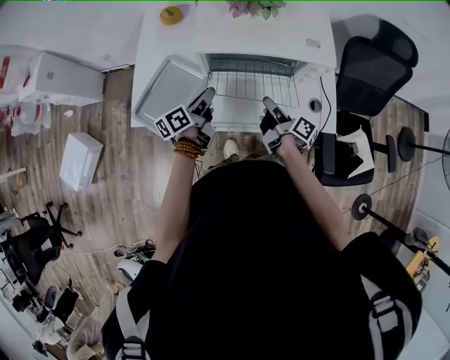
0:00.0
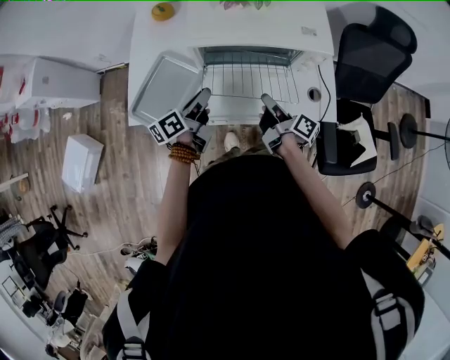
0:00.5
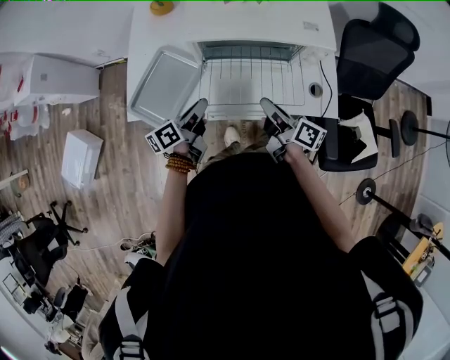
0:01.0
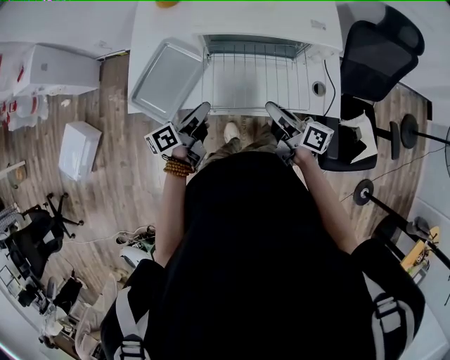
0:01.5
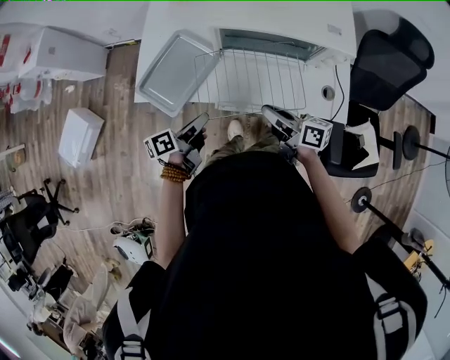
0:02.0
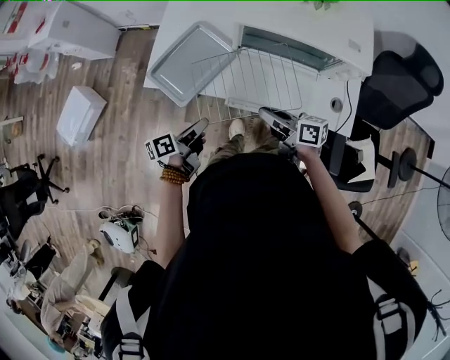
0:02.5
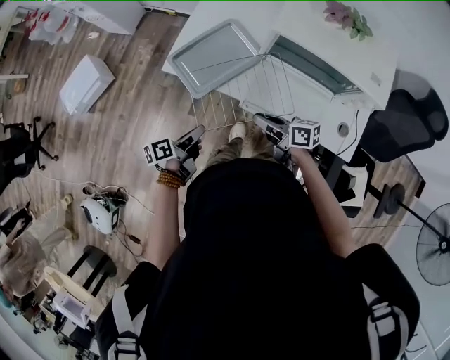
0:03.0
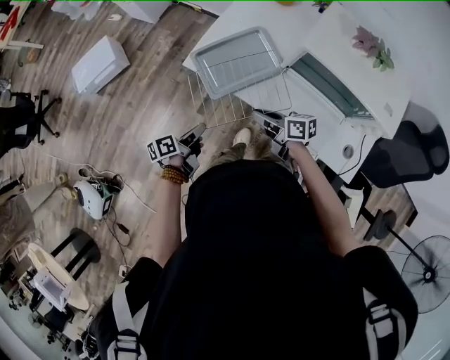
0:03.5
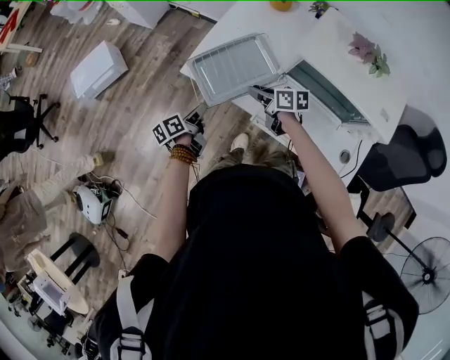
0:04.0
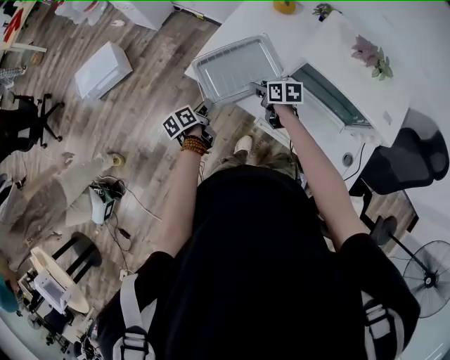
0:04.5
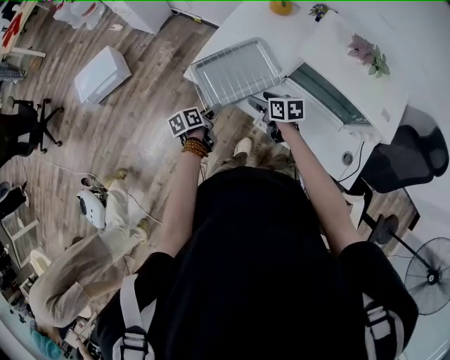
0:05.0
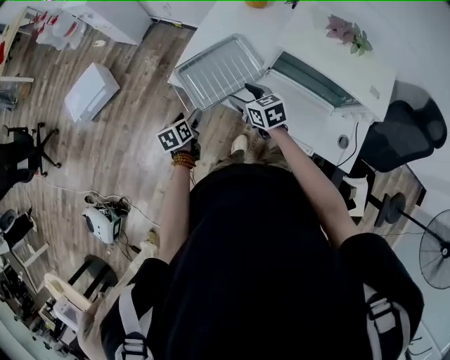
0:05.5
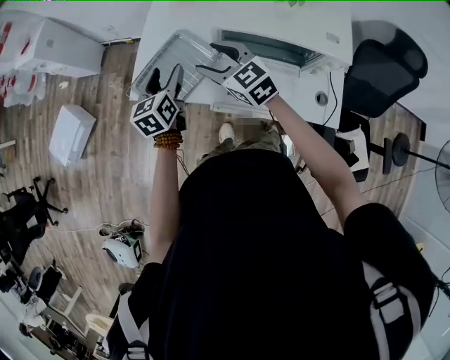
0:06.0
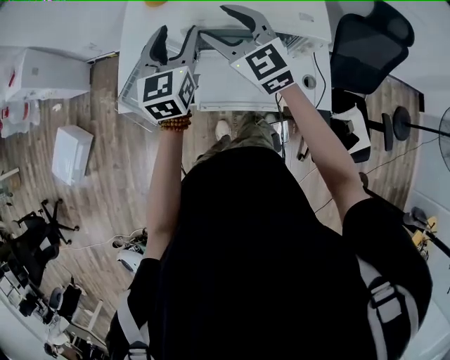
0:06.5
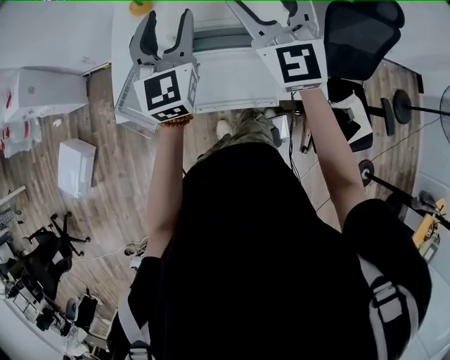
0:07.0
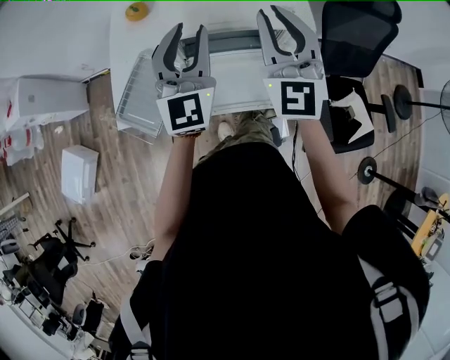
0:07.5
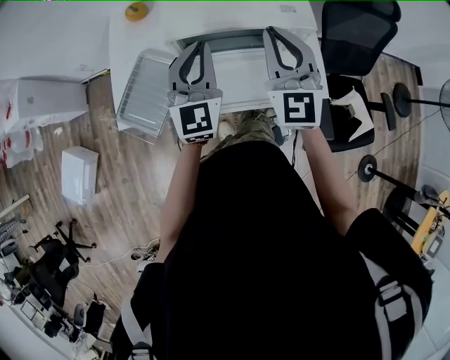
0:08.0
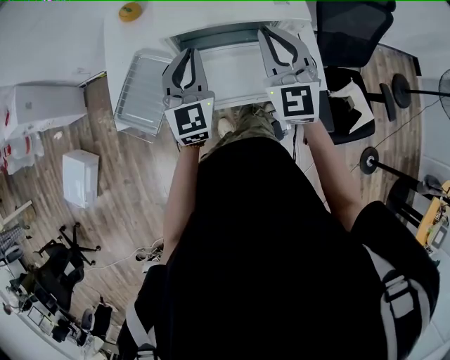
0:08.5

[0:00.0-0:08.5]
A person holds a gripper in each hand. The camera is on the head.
0:00.0 to 0:02.0: The right gripper is displaced backward and to the left by some 10 cm, and turns by about 40 degrees, while the left gripper heads backward, covering approximately 15 cm.
0:02.0 to 0:04.0: The right gripper shifts by roughly 25 cm, and changes its angle by approximately 40 degrees. The left gripper changes place by some 20 cm, and swivels about 40 degrees.
0:04.0 to 0:06.5: The grippers both shift upward by approximately 30 cm. The left gripper rolls clockwise, seen from behind, by approximately 70 degrees, and opens its fingers. The right gripper changes its angle by some 70 degrees, and opens.
0:06.5 to 0:08.5: The left gripper heads to the right and backward, covering roughly 10 cm, moves about 5 cm upward and comes back, and closes its fingers, while the right gripper travels to the right and backward by roughly 15 cm, rotates roughly 30 degrees, and closes its fingers.

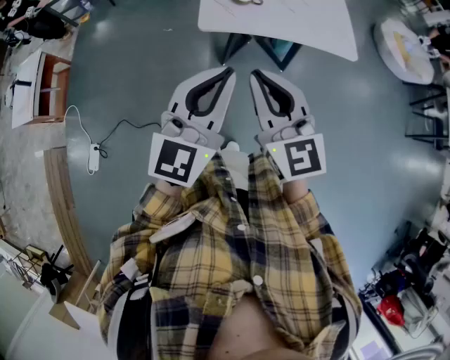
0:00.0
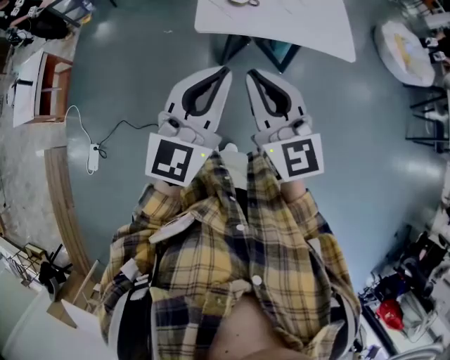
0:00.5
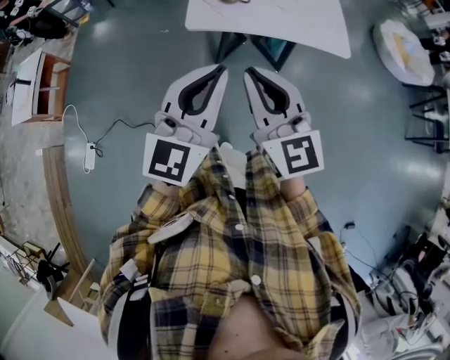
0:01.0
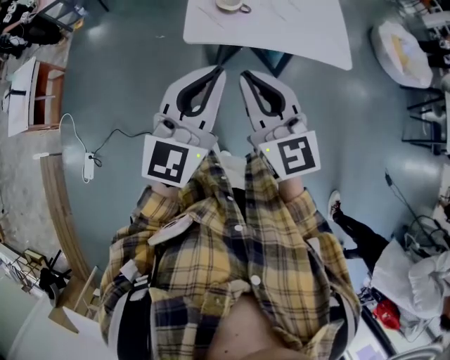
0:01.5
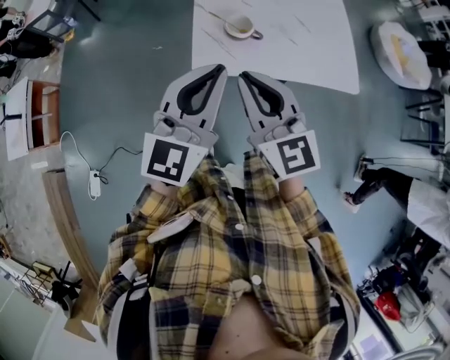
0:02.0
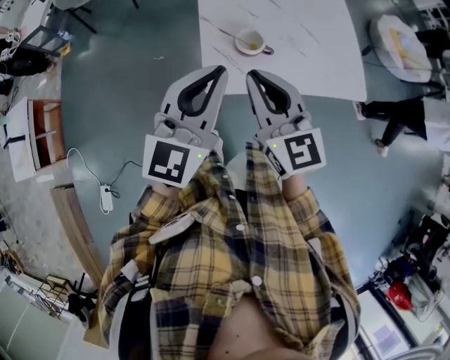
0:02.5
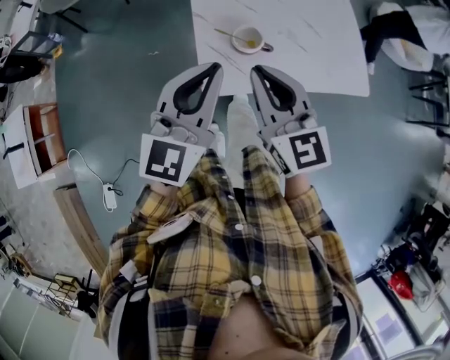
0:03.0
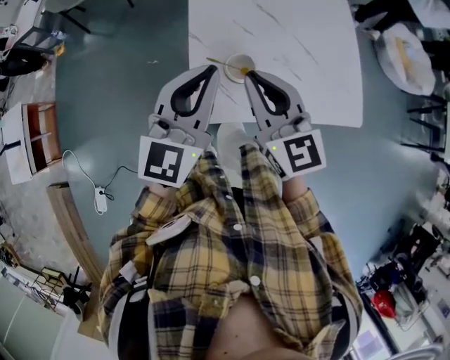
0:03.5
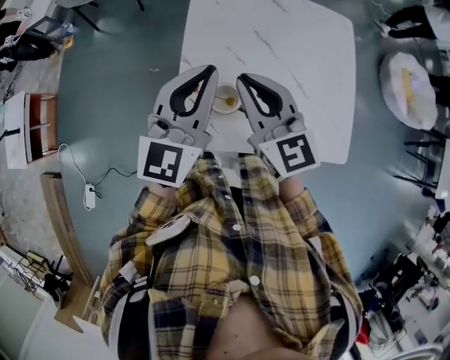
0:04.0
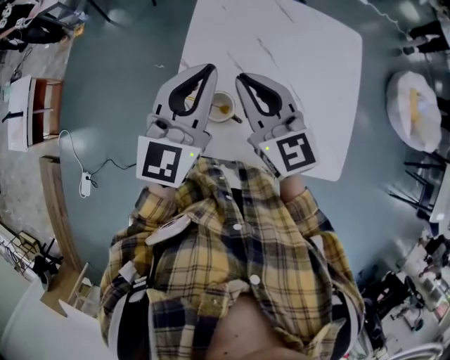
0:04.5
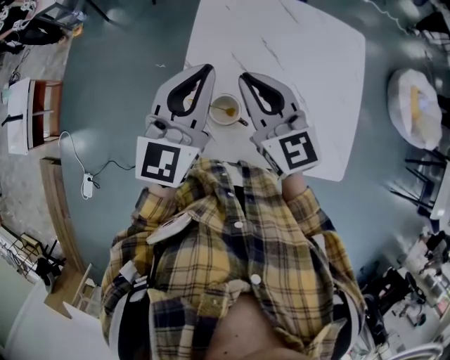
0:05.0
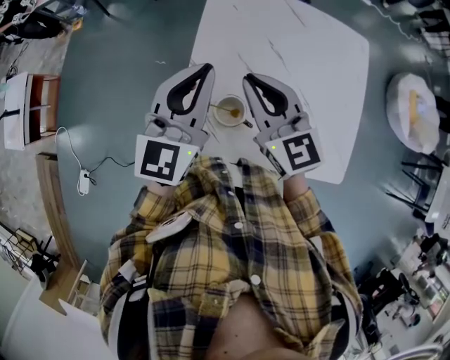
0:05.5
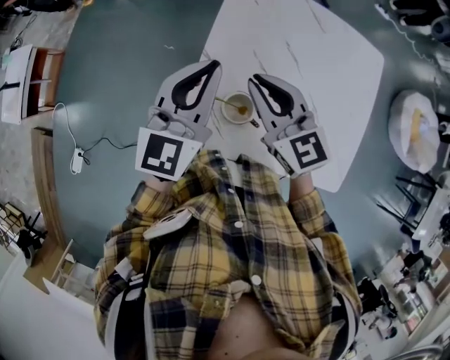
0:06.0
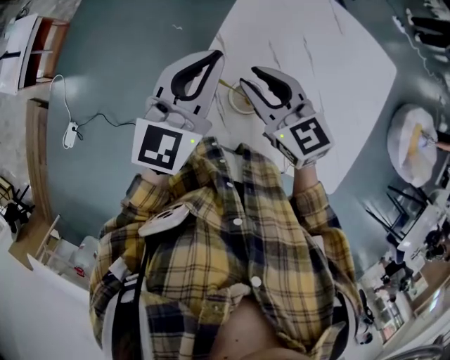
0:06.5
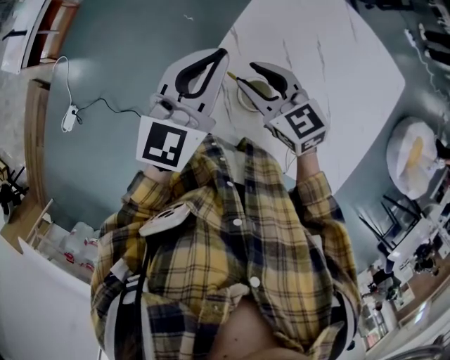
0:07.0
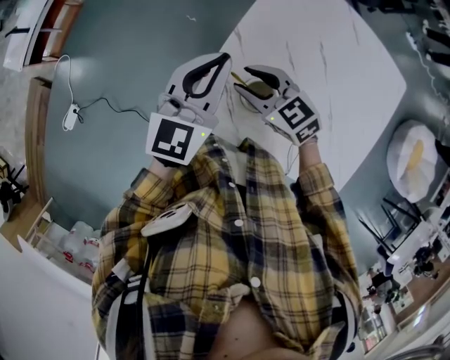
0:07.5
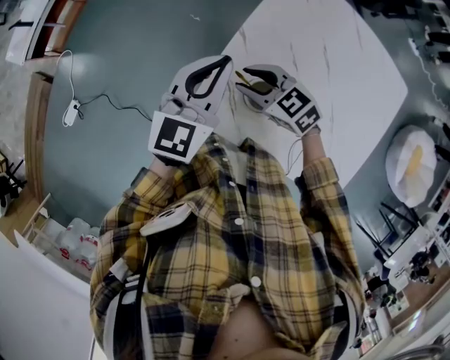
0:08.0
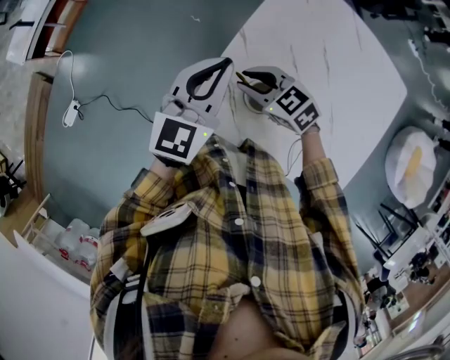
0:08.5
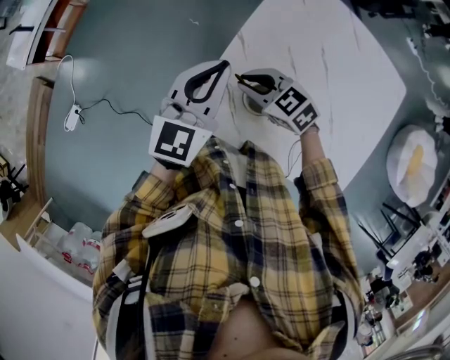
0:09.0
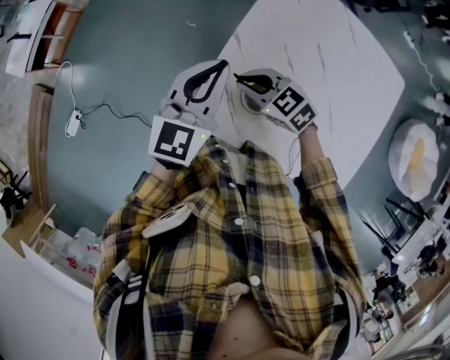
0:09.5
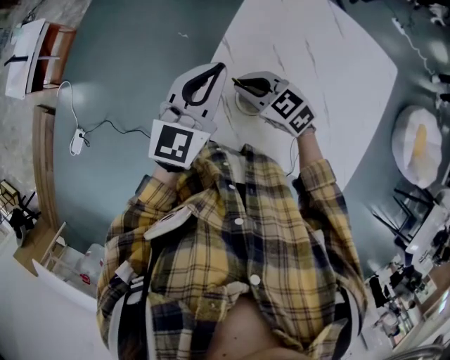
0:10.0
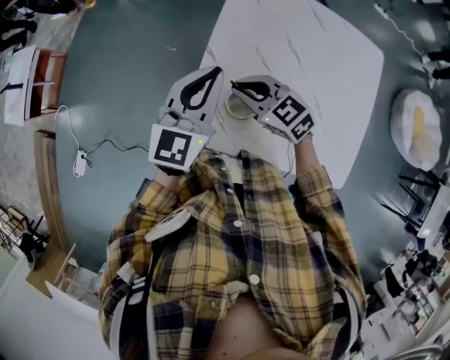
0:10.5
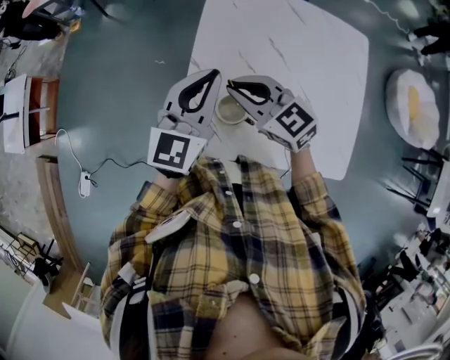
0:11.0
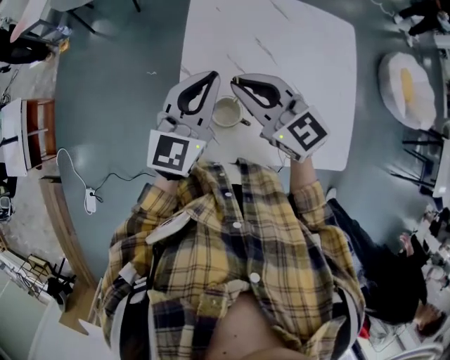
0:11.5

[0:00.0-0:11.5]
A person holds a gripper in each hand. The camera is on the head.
0:00.0 to 0:02.0: The two grippers go roughly 20 cm forward.
0:02.0 to 0:04.0: The two grippers go about 25 cm forward.
0:04.0 to 0:06.0: The two grippers go approximately 5 cm forward.
0:06.0 to 0:07.5: The left gripper shifts about 10 cm downward and to the left. The right gripper moves downward and to the left, roughly 15 cm, changes its angle by roughly 40 degrees, and opens.
0:07.5 to 0:09.5: The right gripper closes its fingers.
0:09.5 to 0:11.5: The right gripper moves upward, roughly 20 cm, and turns by roughly 40 degrees. The left gripper shifts by approximately 10 cm, and swivels some 20 degrees.

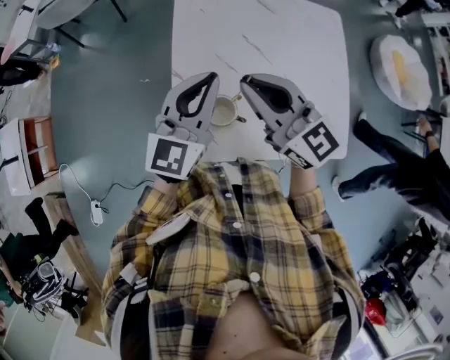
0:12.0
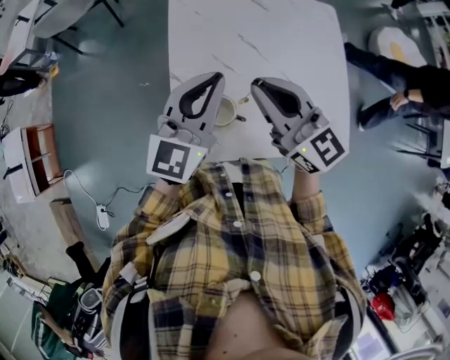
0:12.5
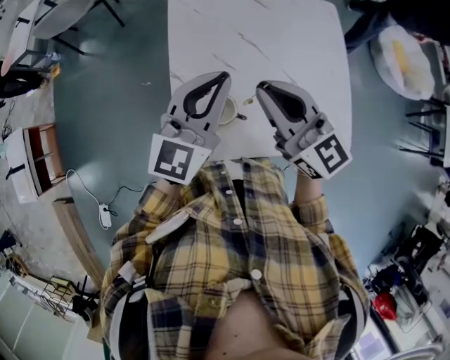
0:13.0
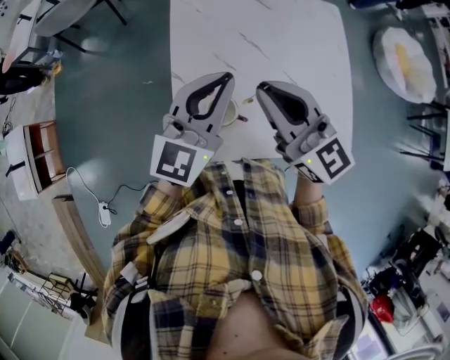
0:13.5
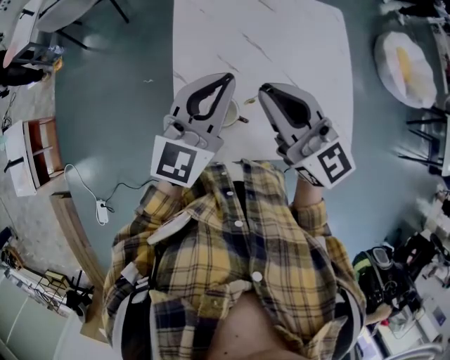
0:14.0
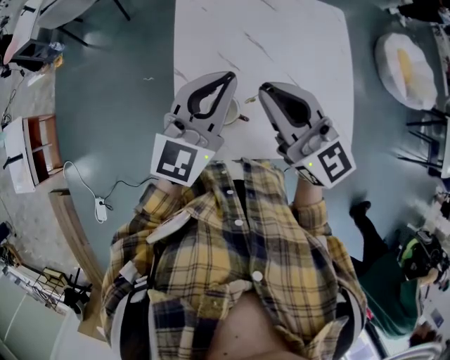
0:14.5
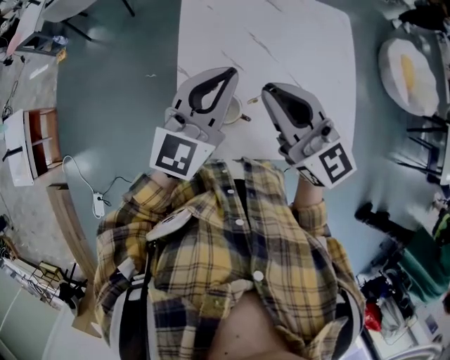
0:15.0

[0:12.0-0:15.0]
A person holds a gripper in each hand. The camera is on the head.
0:12.0 to 0:13.5: The grippers move only a little.
0:13.5 to 0:15.0: Neither gripper changes place.

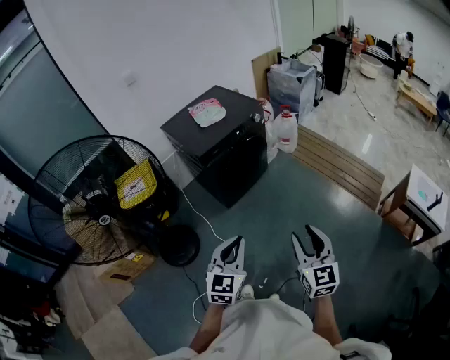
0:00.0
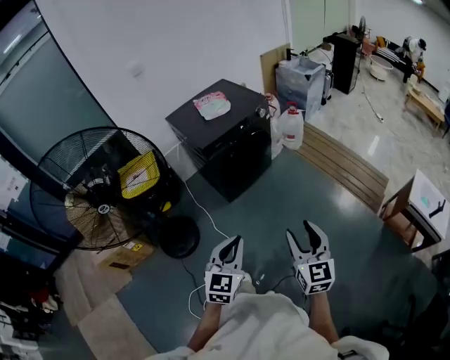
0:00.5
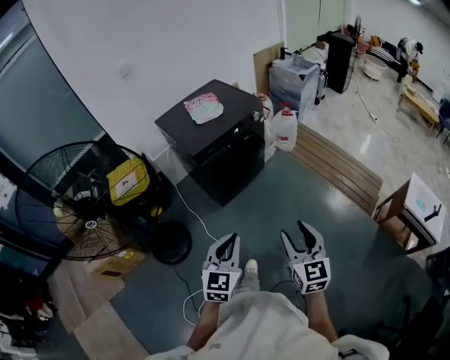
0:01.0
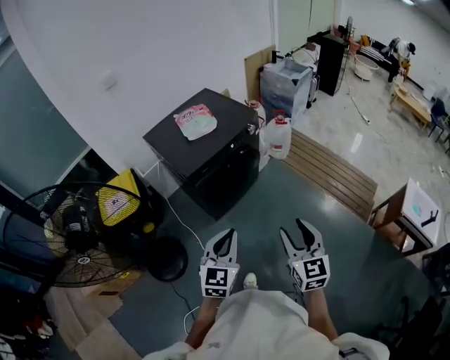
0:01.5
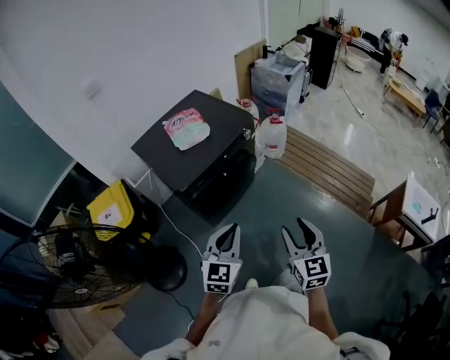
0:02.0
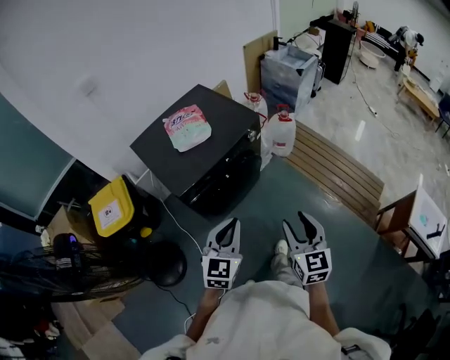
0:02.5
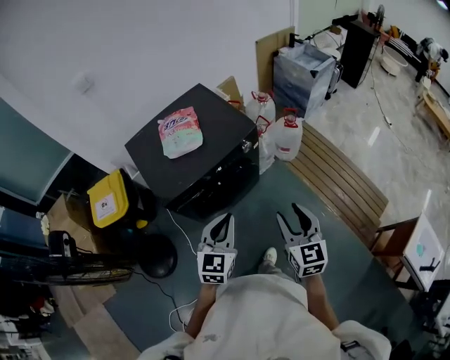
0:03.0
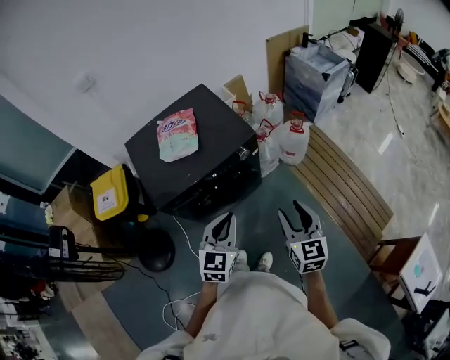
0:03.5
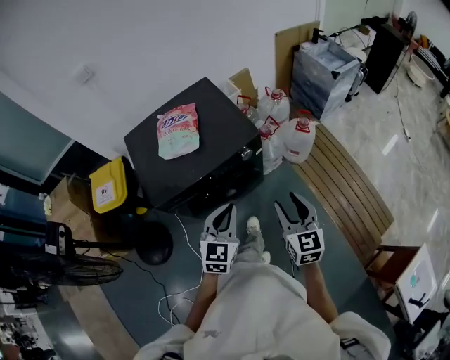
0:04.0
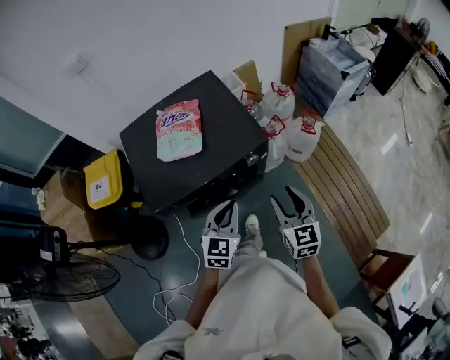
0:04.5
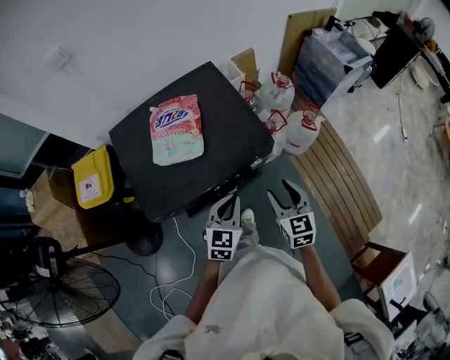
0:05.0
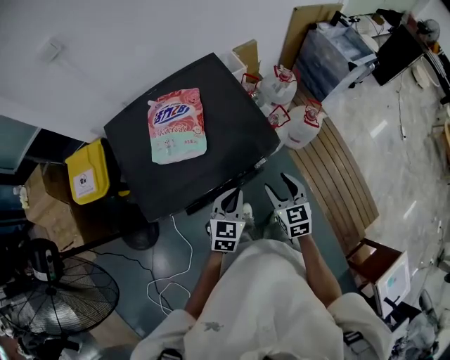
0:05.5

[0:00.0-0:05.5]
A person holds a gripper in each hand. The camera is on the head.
0:00.0 to 0:02.0: The grippers both shift forward by approximately 30 cm.
0:02.0 to 0:03.5: Both grippers travel together forward and to the right, roughly 30 cm.
0:03.5 to 0:05.5: The grippers both shift forward and downward by approximately 25 cm. The right gripper rotates roughly 20 degrees.
